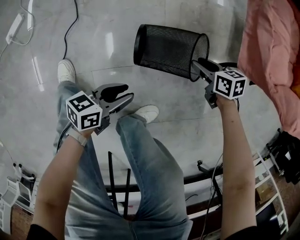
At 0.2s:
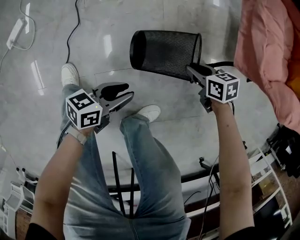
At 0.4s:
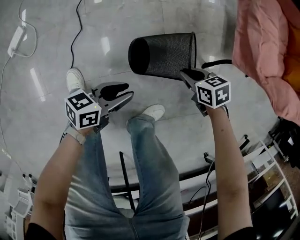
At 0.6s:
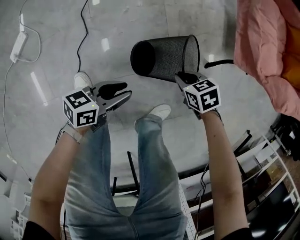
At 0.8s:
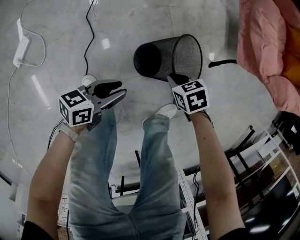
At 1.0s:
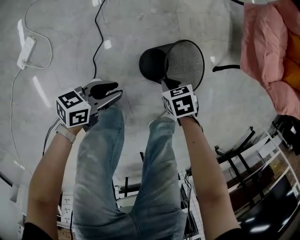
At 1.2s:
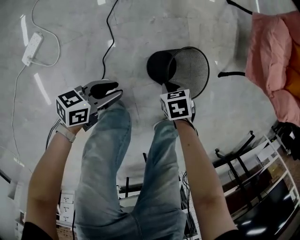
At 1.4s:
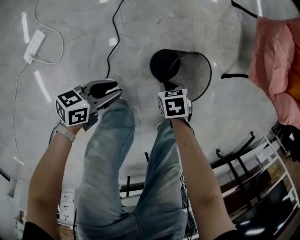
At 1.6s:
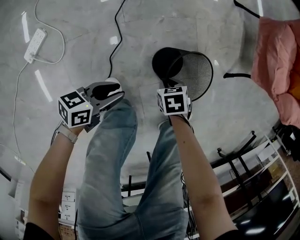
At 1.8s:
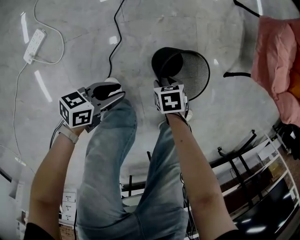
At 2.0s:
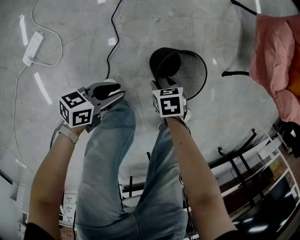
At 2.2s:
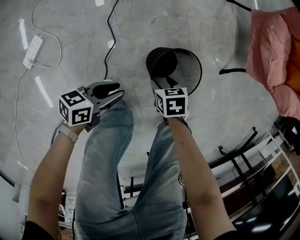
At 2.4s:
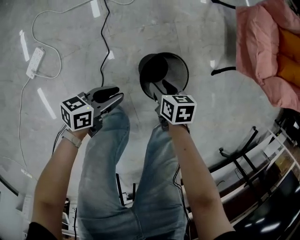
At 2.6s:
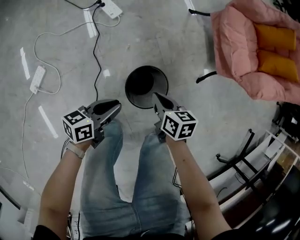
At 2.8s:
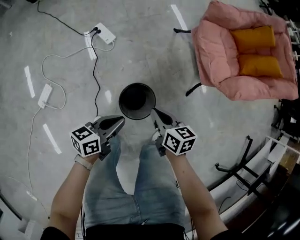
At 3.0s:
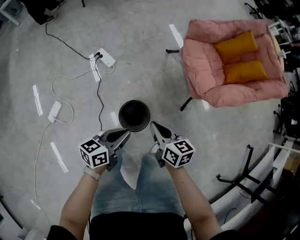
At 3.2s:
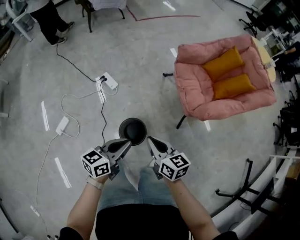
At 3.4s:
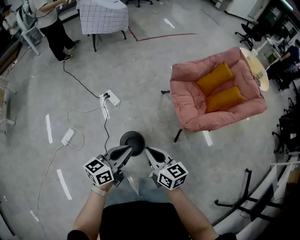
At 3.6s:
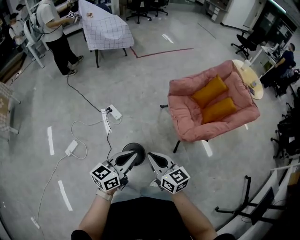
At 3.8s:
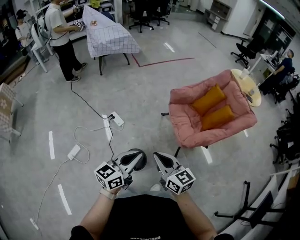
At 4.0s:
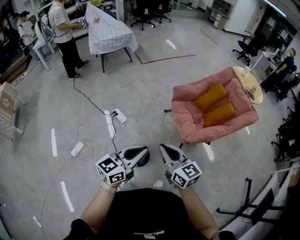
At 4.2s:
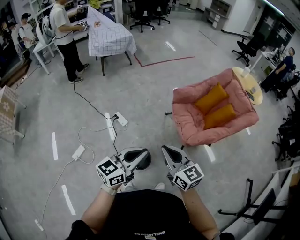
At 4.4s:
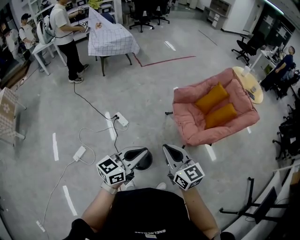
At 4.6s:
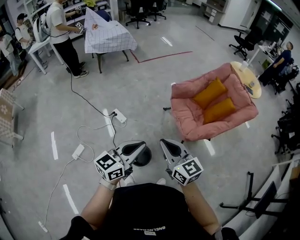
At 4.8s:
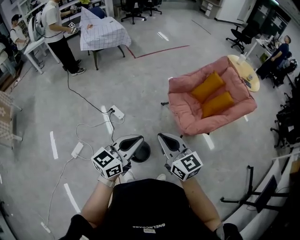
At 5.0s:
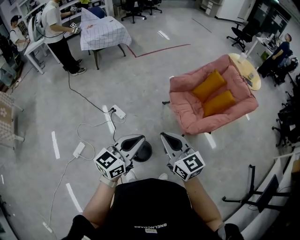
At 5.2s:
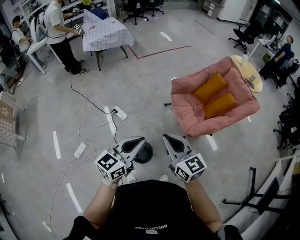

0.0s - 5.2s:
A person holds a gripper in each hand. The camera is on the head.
0.0s - 1.8s: The right gripper shifts by about 35 cm, and turns by roughly 30 degrees. The left gripper ends up some 30 cm from where it was.
1.8s - 3.4s: Both grippers move upward, about 60 cm. The left gripper rotates approximately 40 degrees, and closes up; the right gripper points its fingers roughly 70 degrees further upward, and closes.
3.4s - 5.2s: The grippers both shift upward by some 15 cm. The right gripper turns by approximately 20 degrees. The left gripper changes its angle by roughly 20 degrees.

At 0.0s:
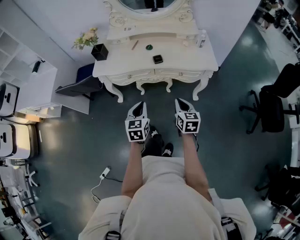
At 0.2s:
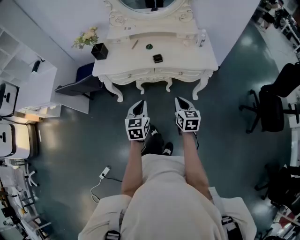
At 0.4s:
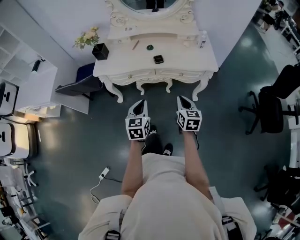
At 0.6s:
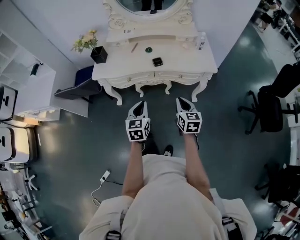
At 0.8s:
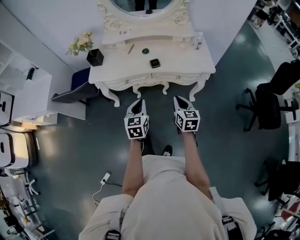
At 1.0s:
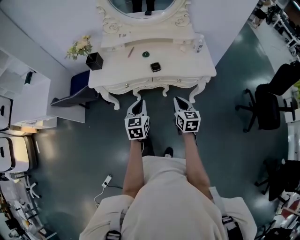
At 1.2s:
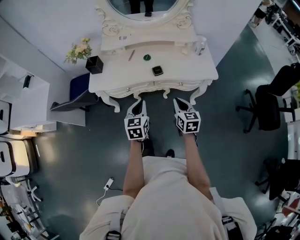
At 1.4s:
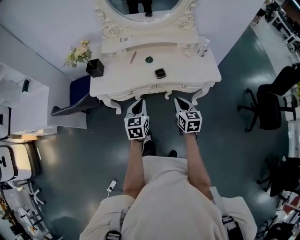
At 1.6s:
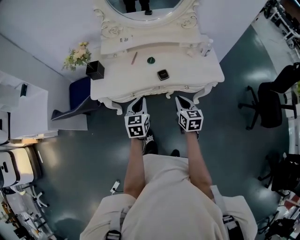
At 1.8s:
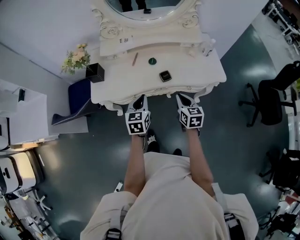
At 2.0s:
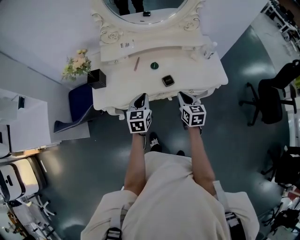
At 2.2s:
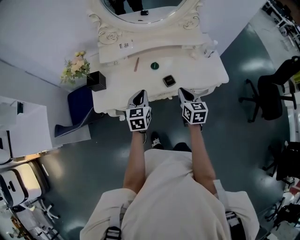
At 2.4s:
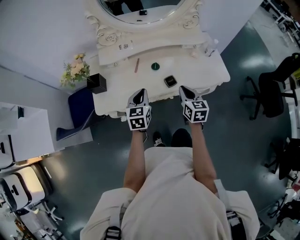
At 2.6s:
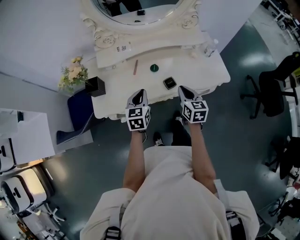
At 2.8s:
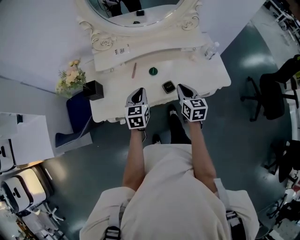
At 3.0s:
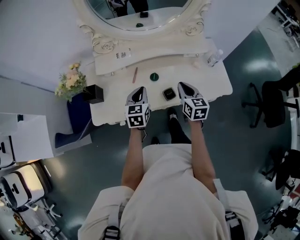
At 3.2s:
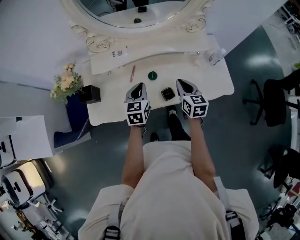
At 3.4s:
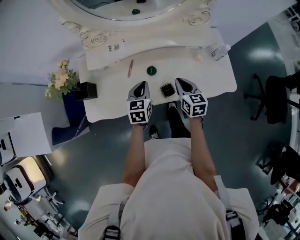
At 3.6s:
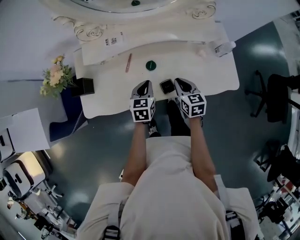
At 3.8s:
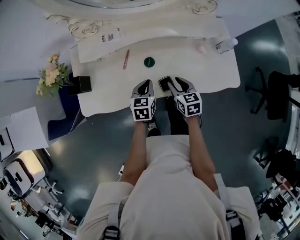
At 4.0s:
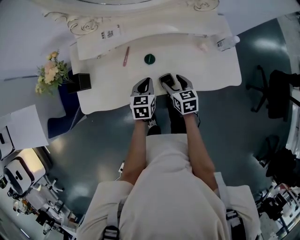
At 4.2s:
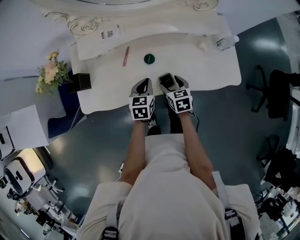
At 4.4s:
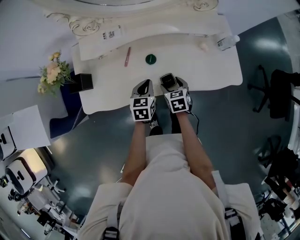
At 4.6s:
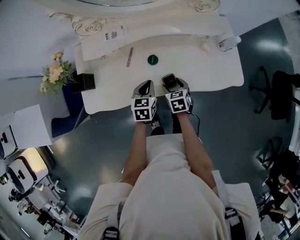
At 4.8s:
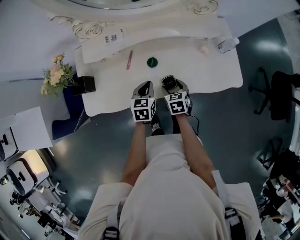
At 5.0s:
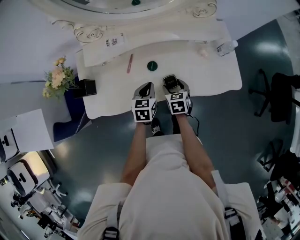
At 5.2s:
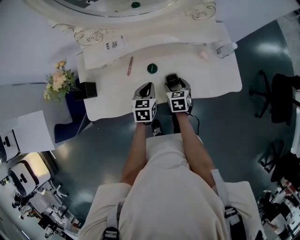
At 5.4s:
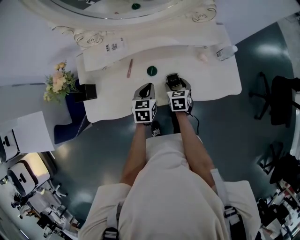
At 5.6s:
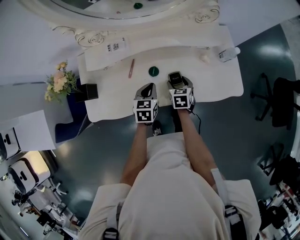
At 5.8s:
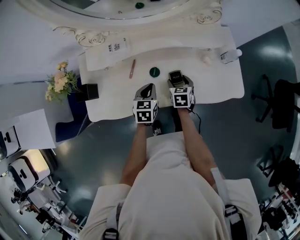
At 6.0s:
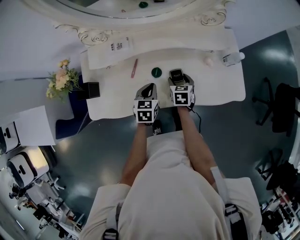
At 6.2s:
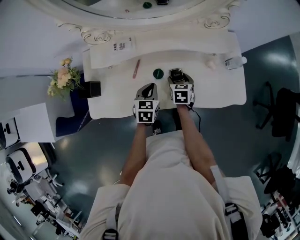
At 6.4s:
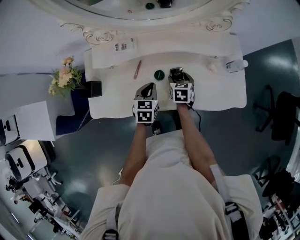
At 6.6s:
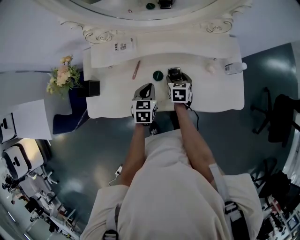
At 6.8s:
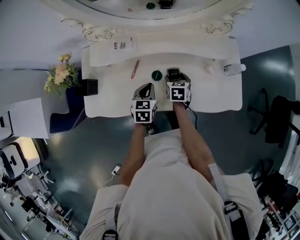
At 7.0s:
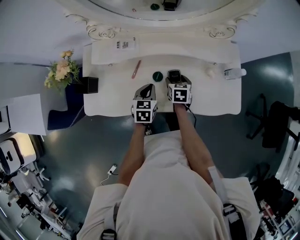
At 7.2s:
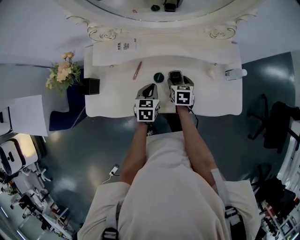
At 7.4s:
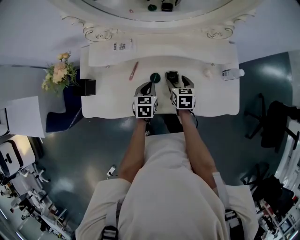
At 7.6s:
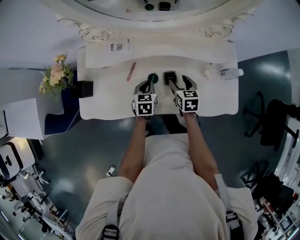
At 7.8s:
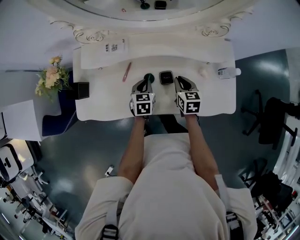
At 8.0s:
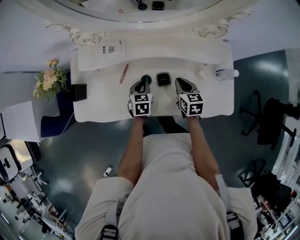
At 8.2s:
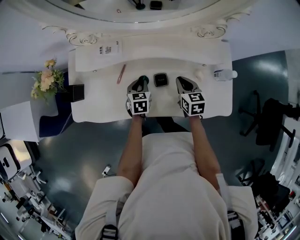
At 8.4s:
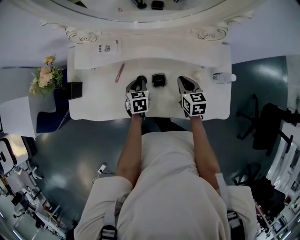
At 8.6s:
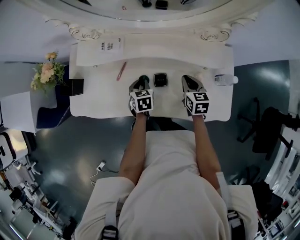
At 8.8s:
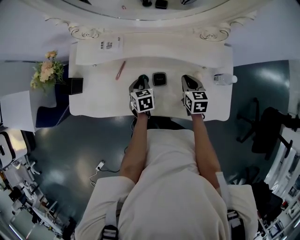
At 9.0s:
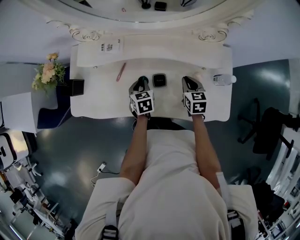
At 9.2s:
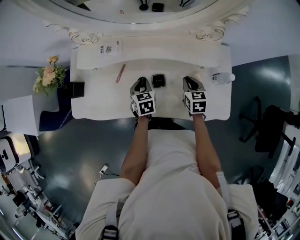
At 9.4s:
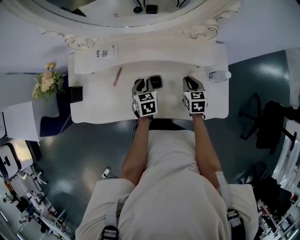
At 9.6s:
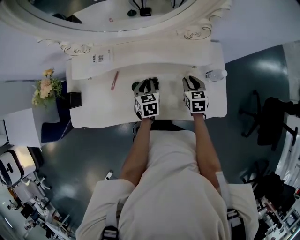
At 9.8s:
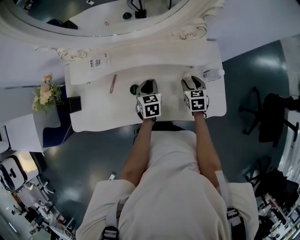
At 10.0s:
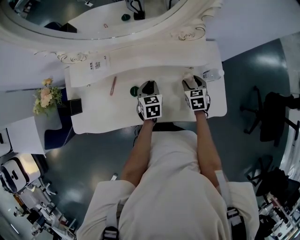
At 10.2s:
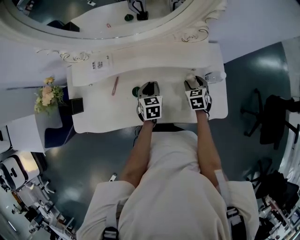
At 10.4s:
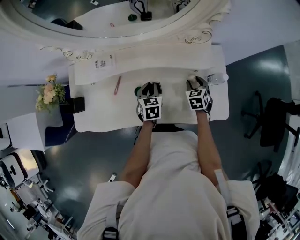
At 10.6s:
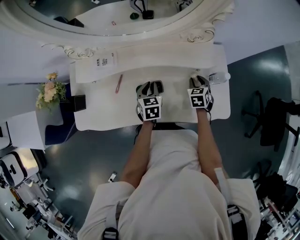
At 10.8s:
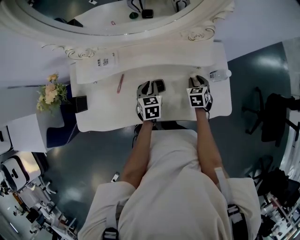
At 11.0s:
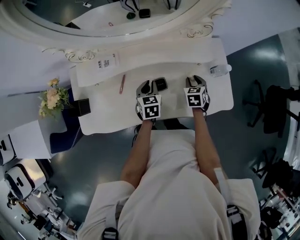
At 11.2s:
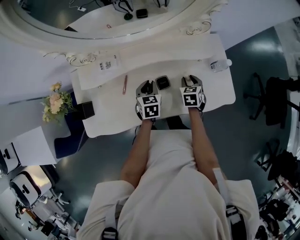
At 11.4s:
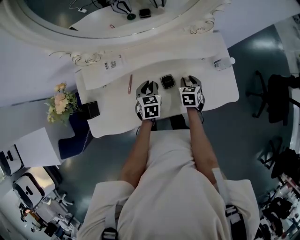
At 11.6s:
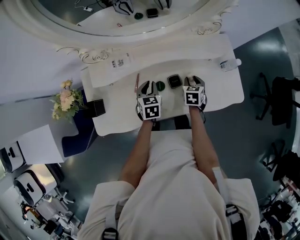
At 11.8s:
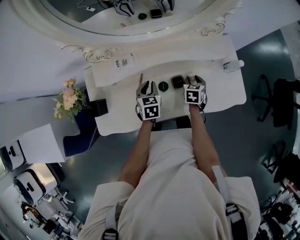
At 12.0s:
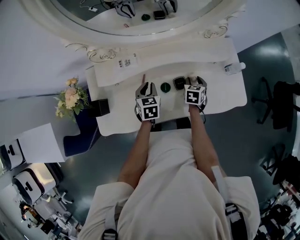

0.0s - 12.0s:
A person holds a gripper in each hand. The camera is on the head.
0.0s - 1.6s: The grippers both shift forward by roughly 20 cm.
1.6s - 3.0s: Both grippers travel together forward, about 20 cm.
3.0s - 4.4s: The right gripper shifts roughly 20 cm downward, changes its angle by approximately 30 degrees, and opens its fingers. Meanwhile the left gripper travels downward and to the right by about 15 cm.
4.4s - 6.0s: The right gripper goes about 10 cm forward; the left gripper heads forward, covering some 5 cm.
6.0s - 7.6s: The left gripper changes place by roughly 5 cm.
7.6s - 9.0s: The right gripper travels to the right by approximately 10 cm, and closes.
9.0s - 10.4s: Both grippers travel together to the right, approximately 10 cm. The right gripper swivels approximately 20 degrees, and opens its fingers.
10.4s - 12.0s: The left gripper goes approximately 15 cm to the left. Meanwhile the right gripper moves to the left and backward, some 15 cm, and turns by some 30 degrees.

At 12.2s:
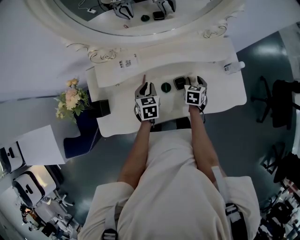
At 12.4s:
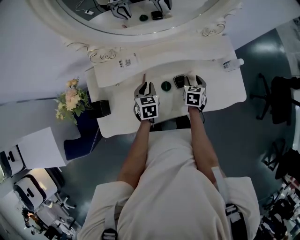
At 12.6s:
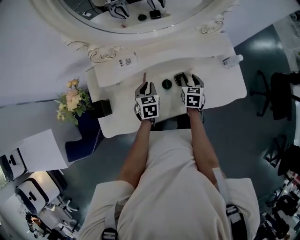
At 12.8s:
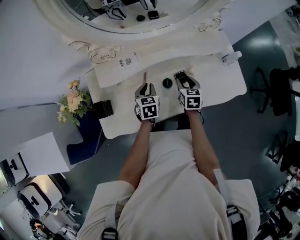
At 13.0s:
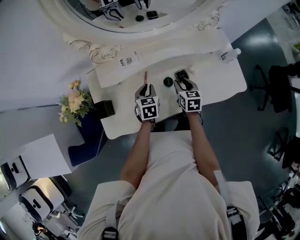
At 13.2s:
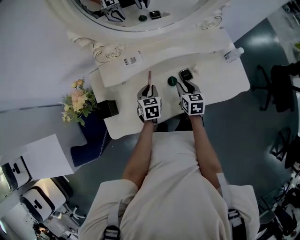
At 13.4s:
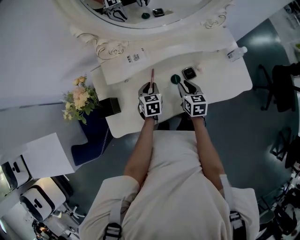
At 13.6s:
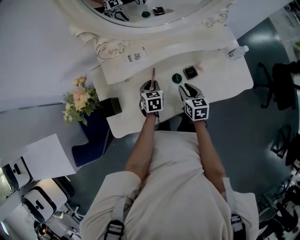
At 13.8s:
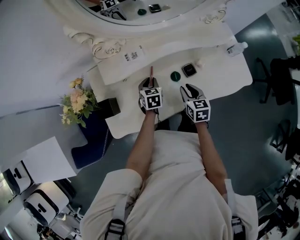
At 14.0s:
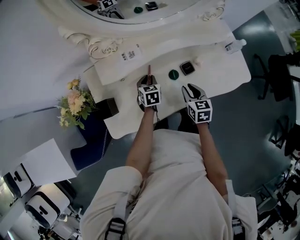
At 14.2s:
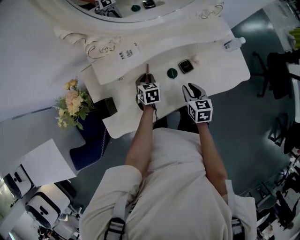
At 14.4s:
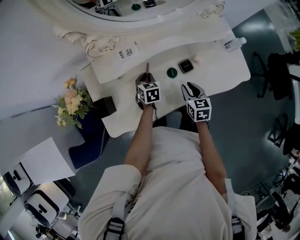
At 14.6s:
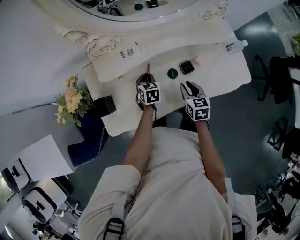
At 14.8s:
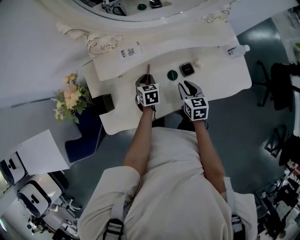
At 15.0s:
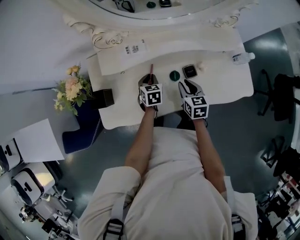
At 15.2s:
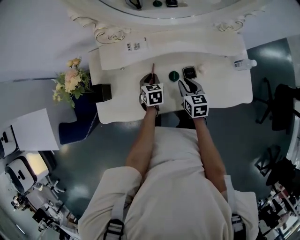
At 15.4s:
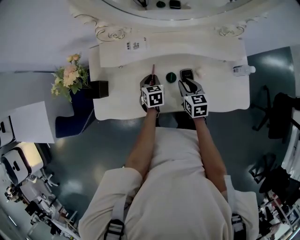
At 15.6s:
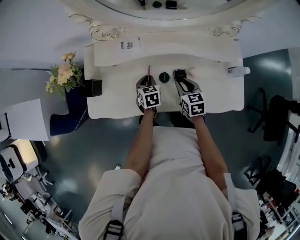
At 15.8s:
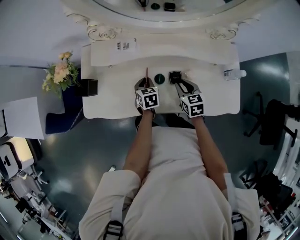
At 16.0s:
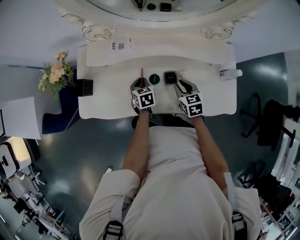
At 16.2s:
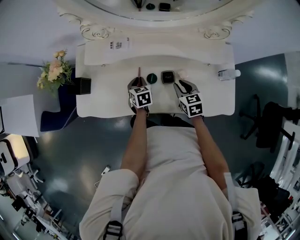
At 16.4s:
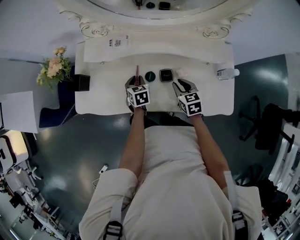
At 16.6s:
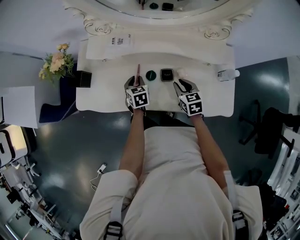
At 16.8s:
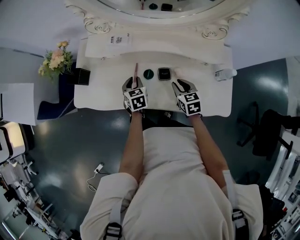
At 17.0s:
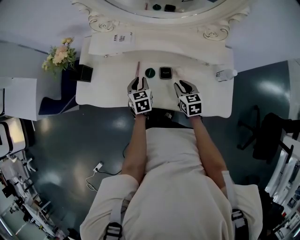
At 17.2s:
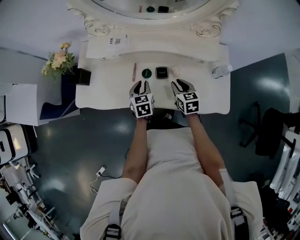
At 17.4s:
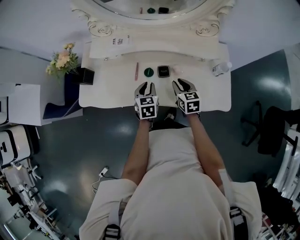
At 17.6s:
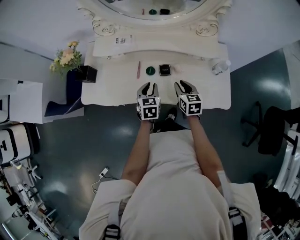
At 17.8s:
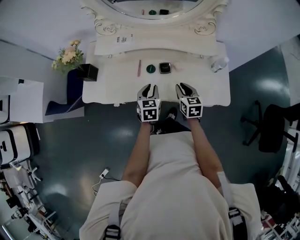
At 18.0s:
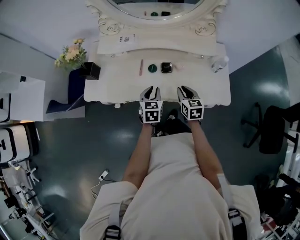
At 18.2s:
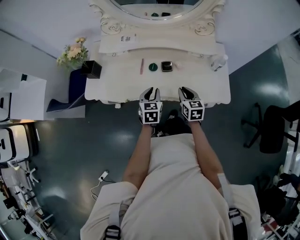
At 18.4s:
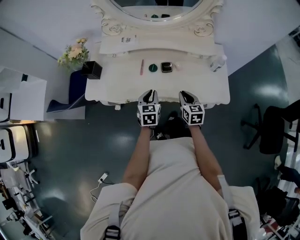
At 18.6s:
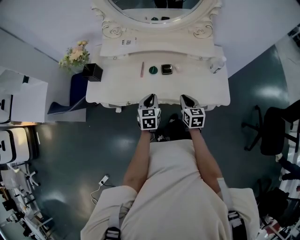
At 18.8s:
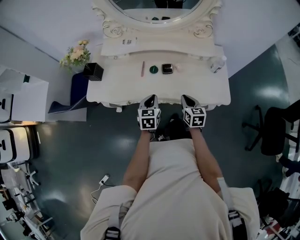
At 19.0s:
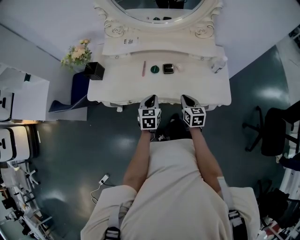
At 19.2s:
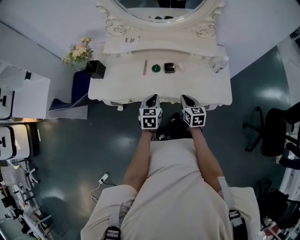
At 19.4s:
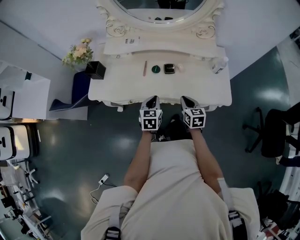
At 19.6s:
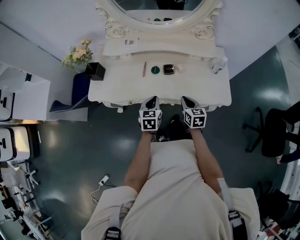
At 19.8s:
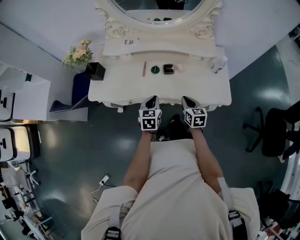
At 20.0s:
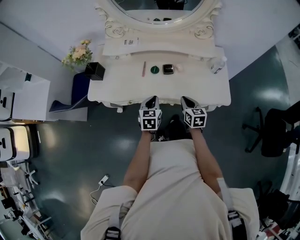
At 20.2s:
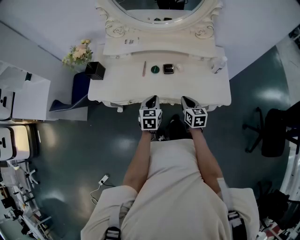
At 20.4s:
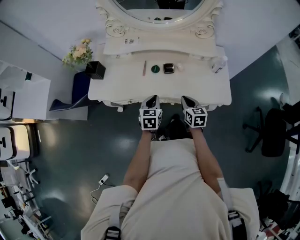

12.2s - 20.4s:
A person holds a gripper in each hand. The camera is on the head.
12.2s - 13.8s: The left gripper heads downward, covering some 5 cm, while the right gripper is displaced to the left and backward by roughly 15 cm.
13.8s - 15.4s: The right gripper changes place by approximately 5 cm.
15.4s - 17.2s: The right gripper shifts approximately 10 cm to the right and backward. Meanwhile the left gripper travels backward, to the right and upward by approximately 15 cm.
17.2s - 18.8s: Both grippers travel together backward, some 15 cm.
18.8s - 20.4s: There are only small adjustments of the grippers.
